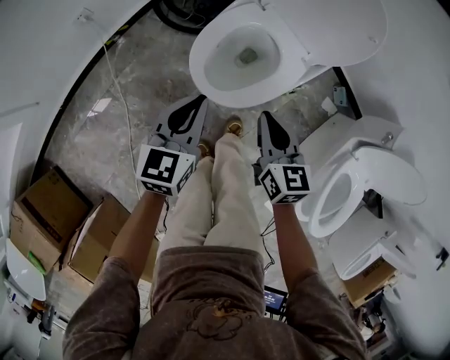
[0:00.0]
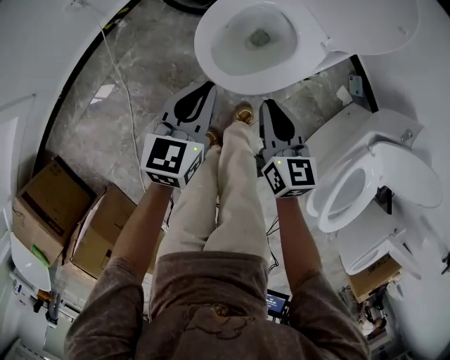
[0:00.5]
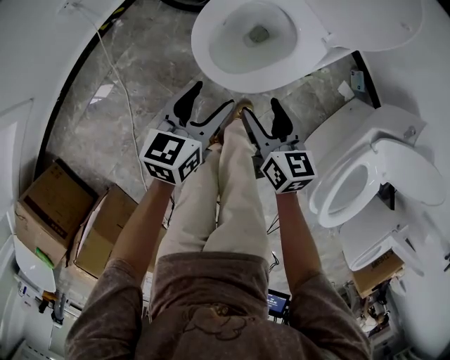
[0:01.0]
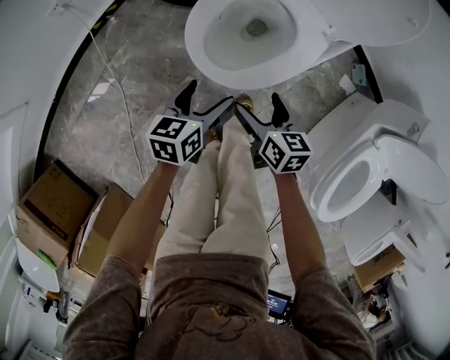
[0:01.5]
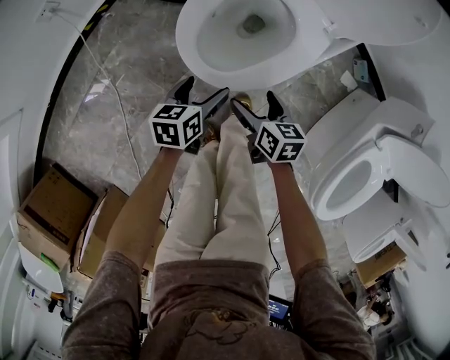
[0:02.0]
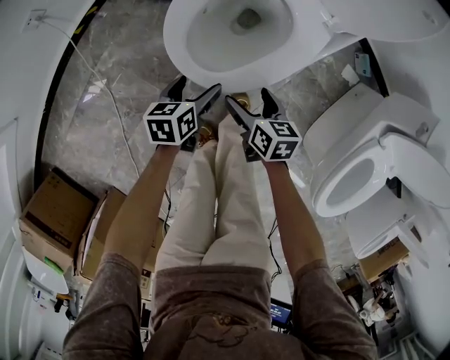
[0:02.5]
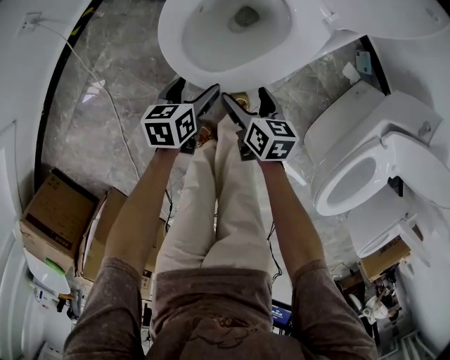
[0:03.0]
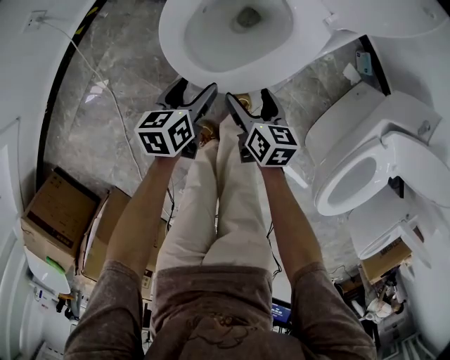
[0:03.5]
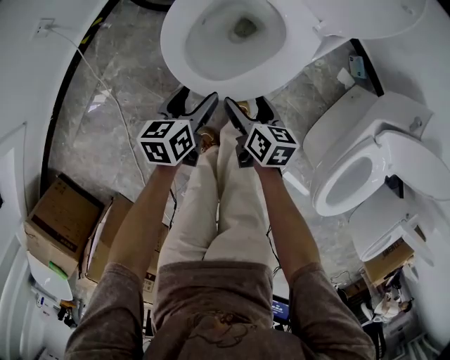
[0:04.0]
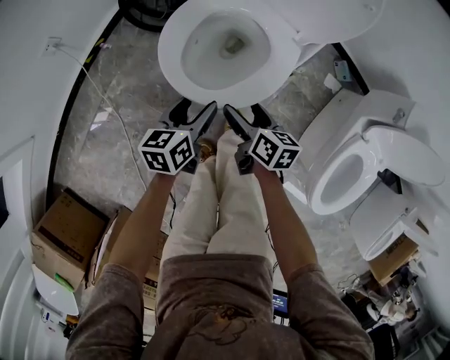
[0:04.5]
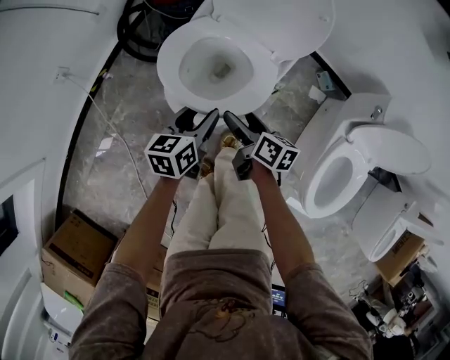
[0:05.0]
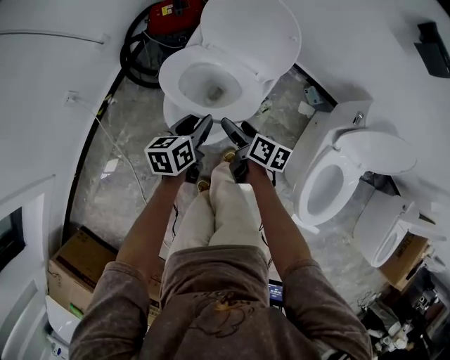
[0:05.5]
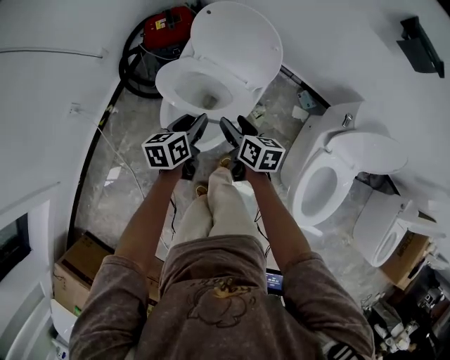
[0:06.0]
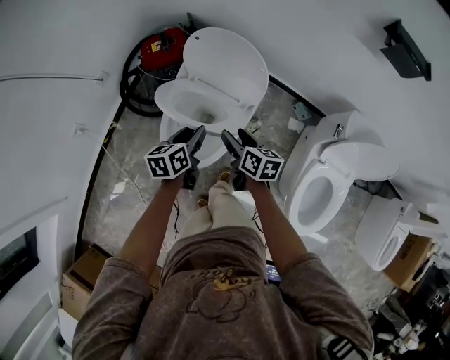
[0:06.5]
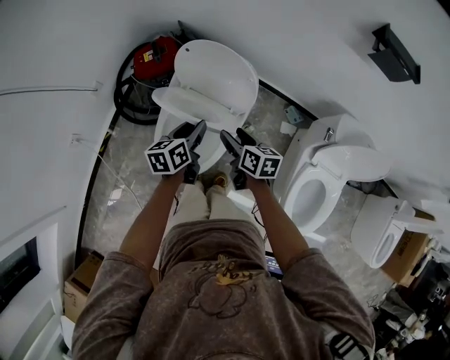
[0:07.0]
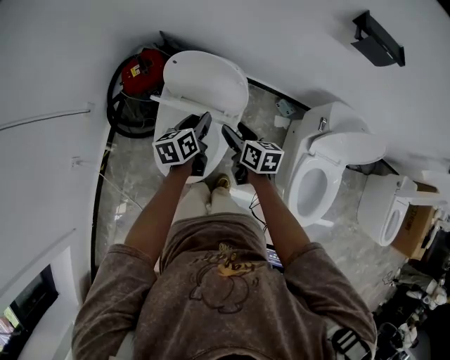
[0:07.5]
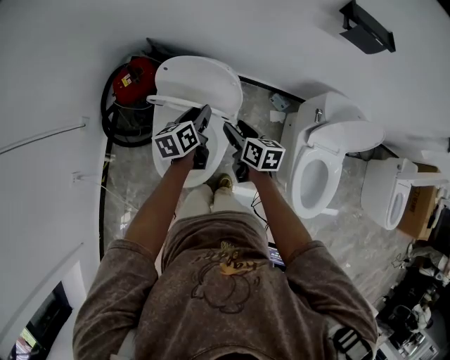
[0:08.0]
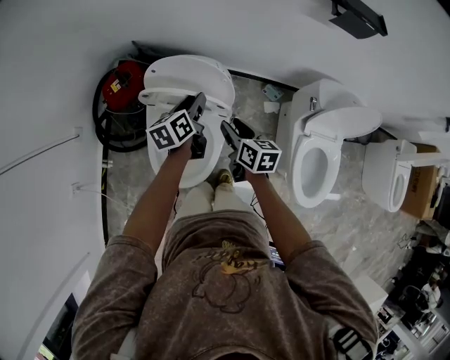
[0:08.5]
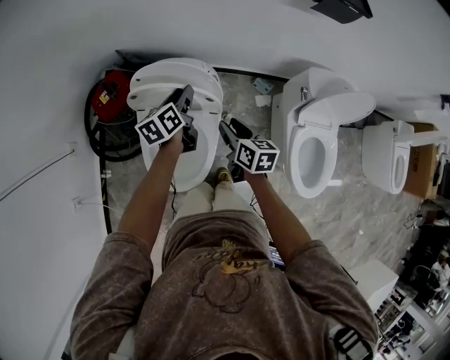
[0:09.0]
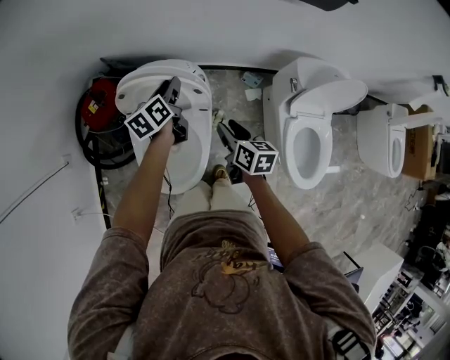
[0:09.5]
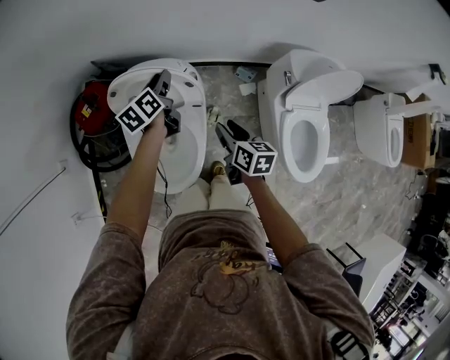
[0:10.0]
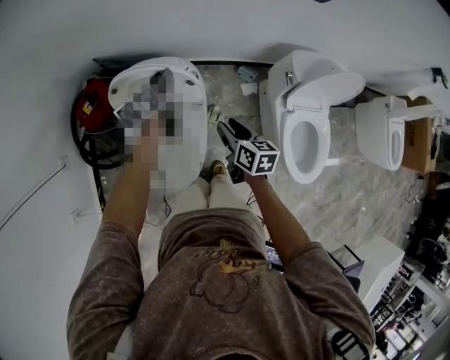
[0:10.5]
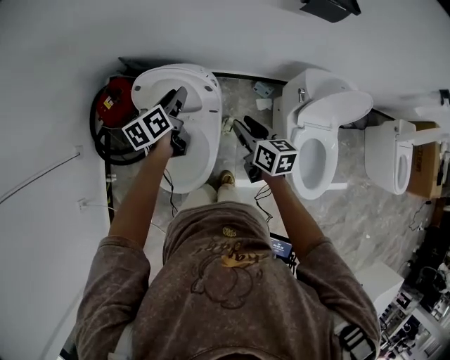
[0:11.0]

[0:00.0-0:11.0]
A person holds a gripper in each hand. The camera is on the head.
0:00.0 to 0:02.0: The two grippers go roughly 25 cm downward. The left gripper turns by roughly 30 degrees, and opens up, while the right gripper swivels some 30 degrees, and opens.
0:02.0 to 0:03.5: The grippers move only a little.
0:03.5 to 0:05.5: Both grippers move upward, approximately 20 cm. The left gripper closes its fingers. The right gripper rotates roughly 30 degrees.
0:05.5 to 0:07.5: The right gripper is displaced forward, upward and to the right by roughly 20 cm, while the left gripper heads forward, to the right and upward, covering roughly 20 cm.
0:07.5 to 0:09.0: The left gripper moves forward, roughly 10 cm.
0:09.0 to 0:11.0: The two grippers go roughly 5 cm upward.

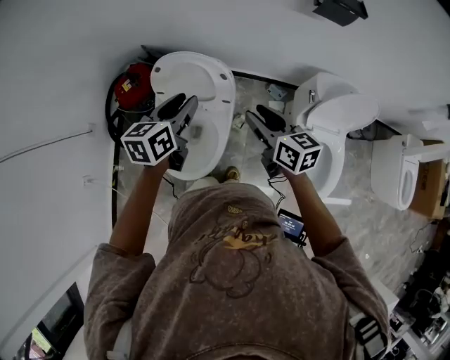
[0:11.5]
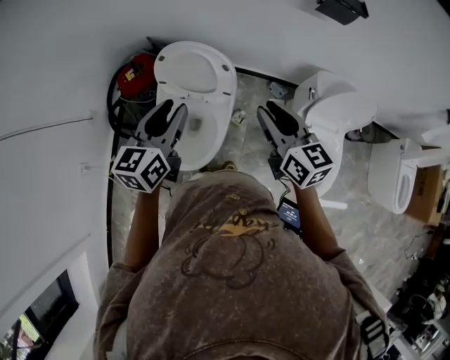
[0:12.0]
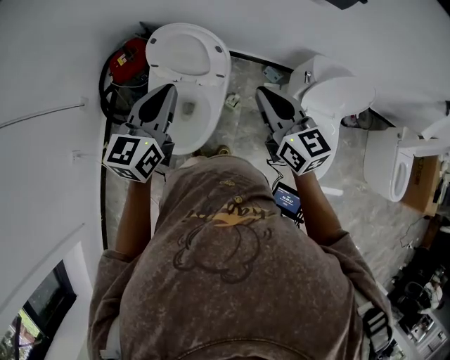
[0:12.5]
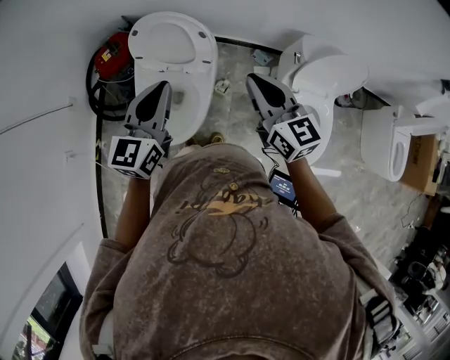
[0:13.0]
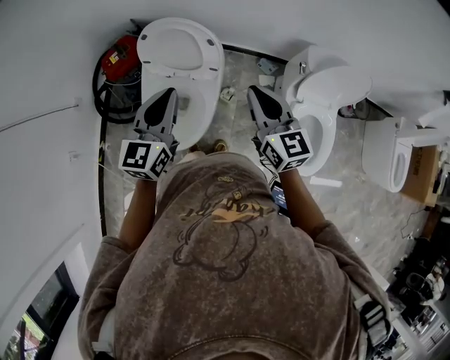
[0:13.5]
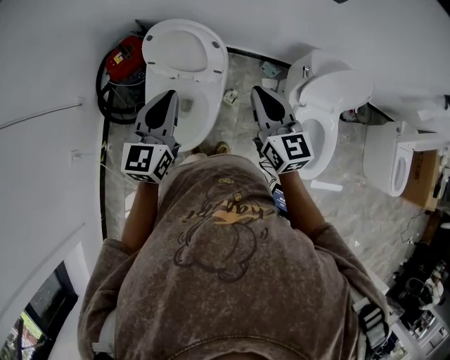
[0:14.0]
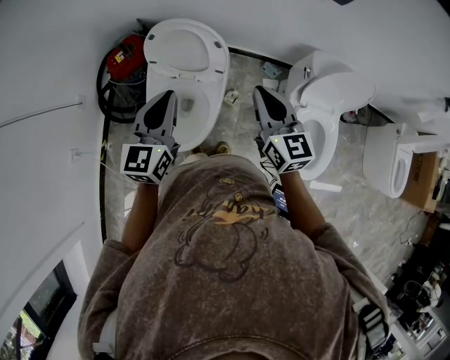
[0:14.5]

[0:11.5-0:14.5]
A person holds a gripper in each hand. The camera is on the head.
0:11.5 to 0:13.0: The left gripper travels backward and upward by roughly 10 cm, and rotates some 20 degrees; the right gripper is displaced upward and backward by roughly 10 cm, and rotates some 20 degrees.
0:13.0 to 0:14.5: There are only small adjustments of the grippers.

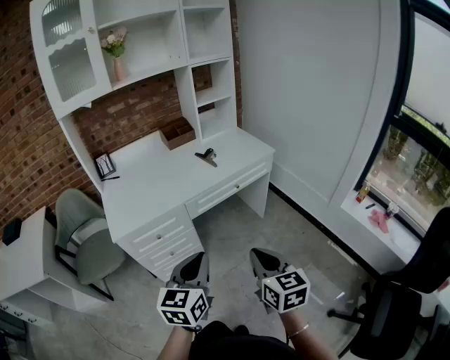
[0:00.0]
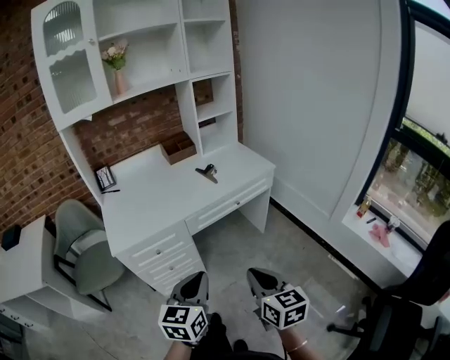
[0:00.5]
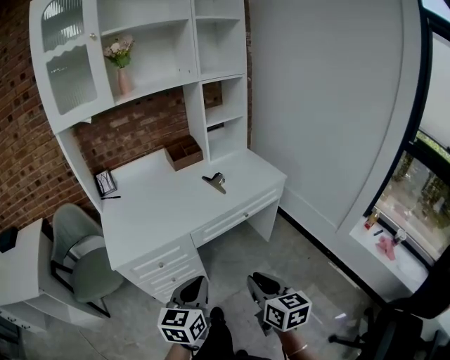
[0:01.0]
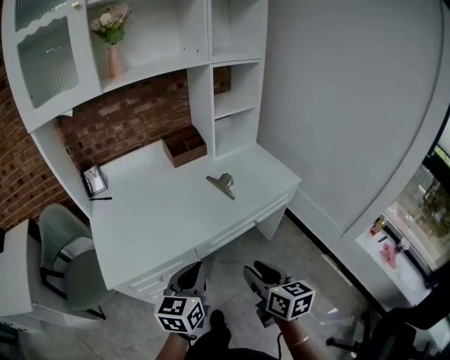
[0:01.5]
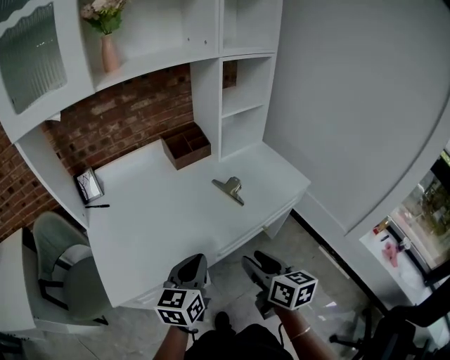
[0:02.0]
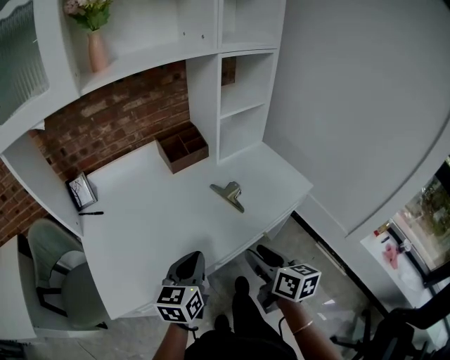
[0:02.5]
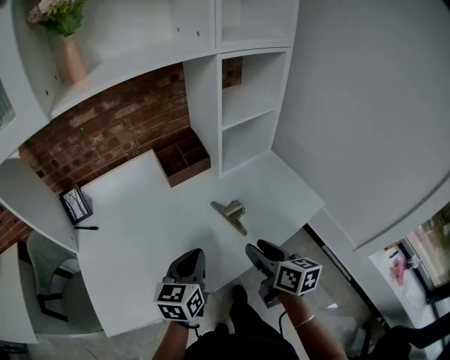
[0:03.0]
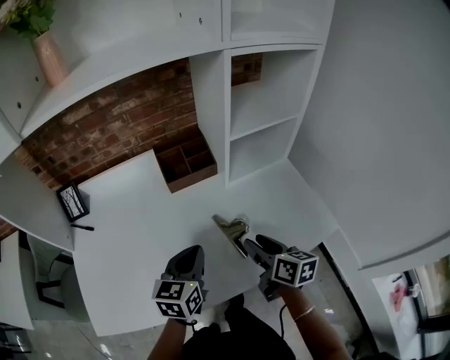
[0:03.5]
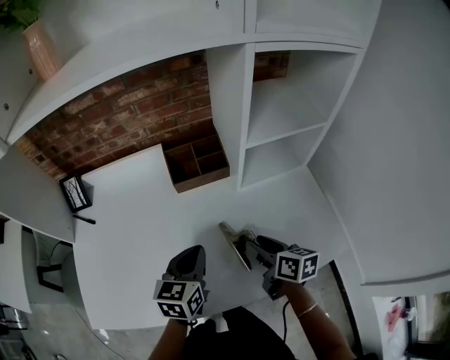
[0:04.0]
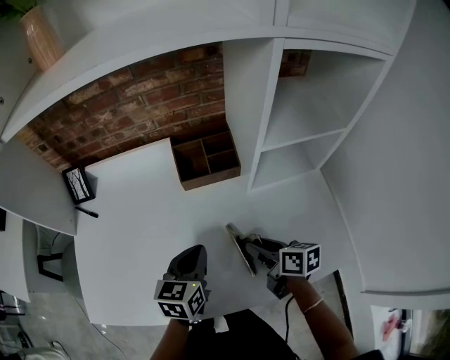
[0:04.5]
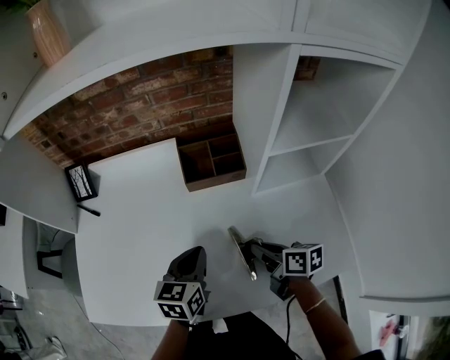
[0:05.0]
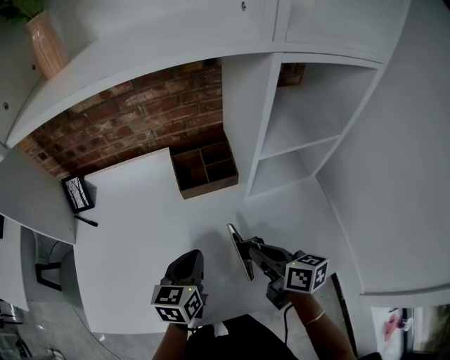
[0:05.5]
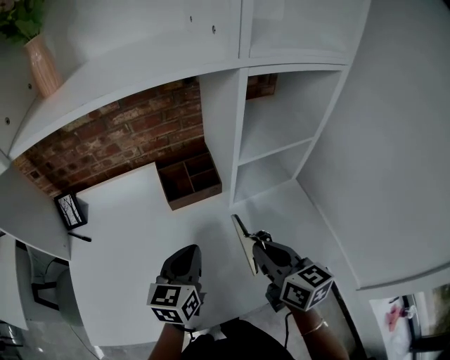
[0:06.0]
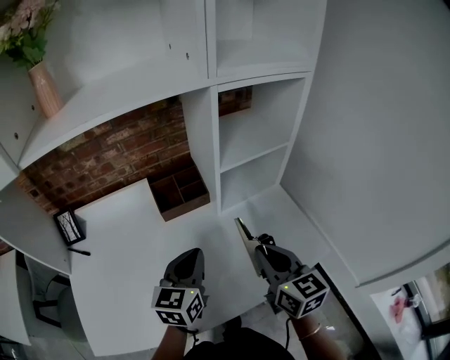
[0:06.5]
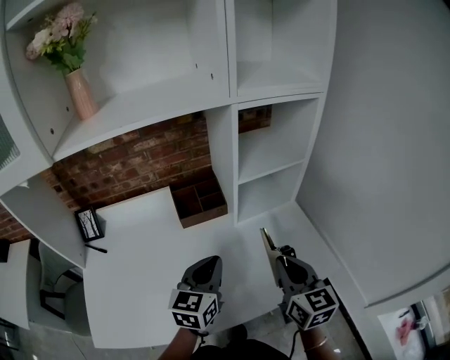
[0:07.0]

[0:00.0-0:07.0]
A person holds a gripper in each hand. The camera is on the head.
0:00.0 to 0:02.0: The two grippers go about 35 cm forward. The right gripper rotates approximately 20 degrees, and opens up.
0:02.0 to 0:03.5: The two grippers go approximately 25 cm forward.
0:03.5 to 0:05.0: The right gripper is displaced forward and downward by about 10 cm, swivels about 30 degrees, and closes. Meanwhile the left gripper heads forward, covering about 5 cm.
0:05.0 to 0:07.0: The right gripper is displaced upward by some 20 cm, and changes its angle by some 50 degrees, while the left gripper goes about 10 cm upward, and changes its angle by roughly 20 degrees.

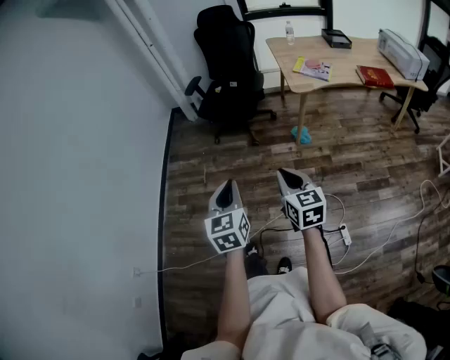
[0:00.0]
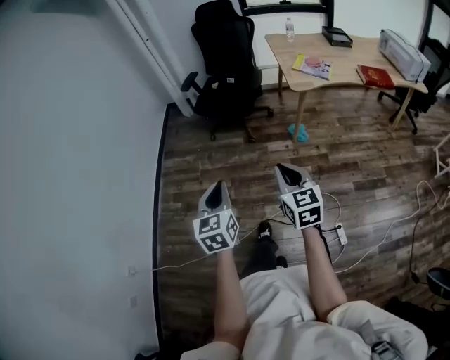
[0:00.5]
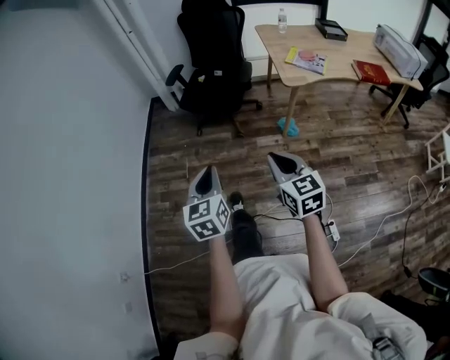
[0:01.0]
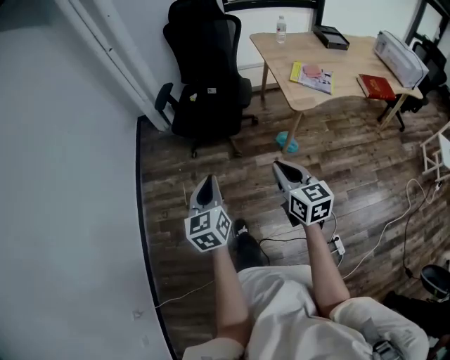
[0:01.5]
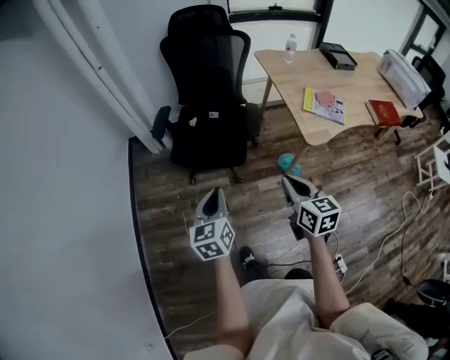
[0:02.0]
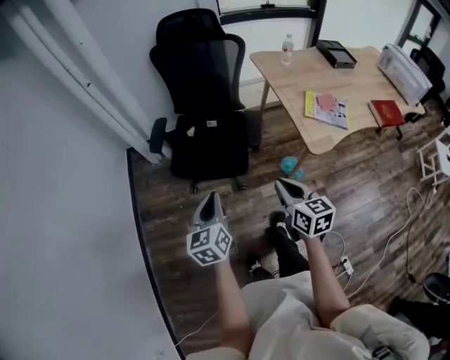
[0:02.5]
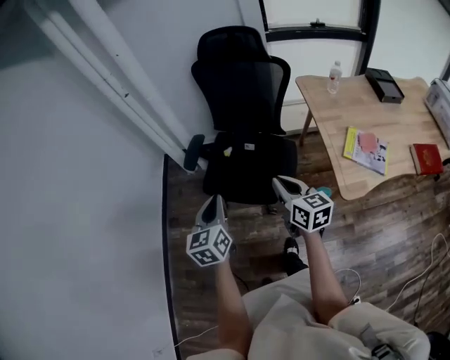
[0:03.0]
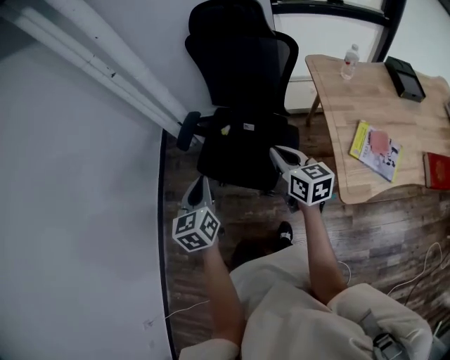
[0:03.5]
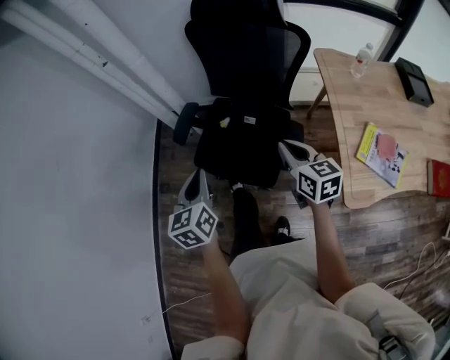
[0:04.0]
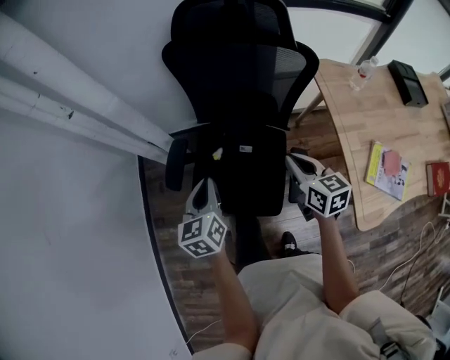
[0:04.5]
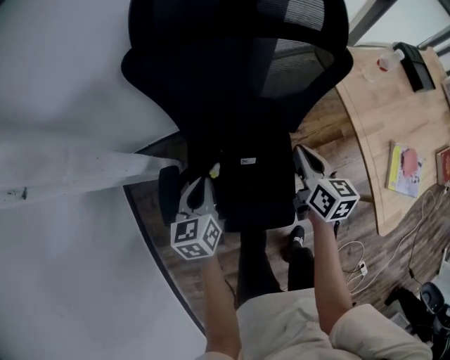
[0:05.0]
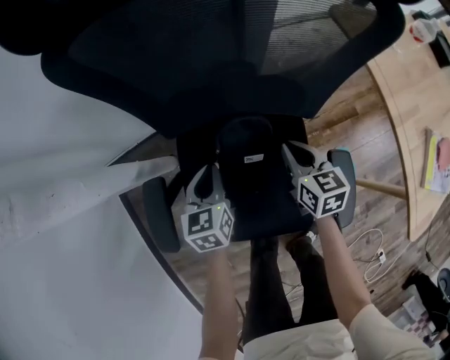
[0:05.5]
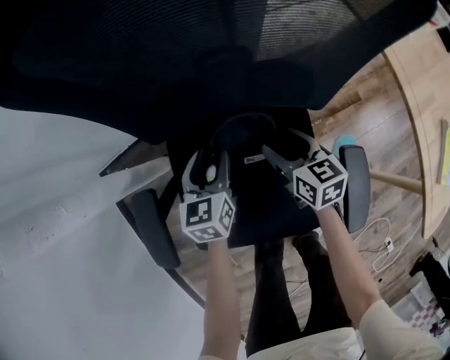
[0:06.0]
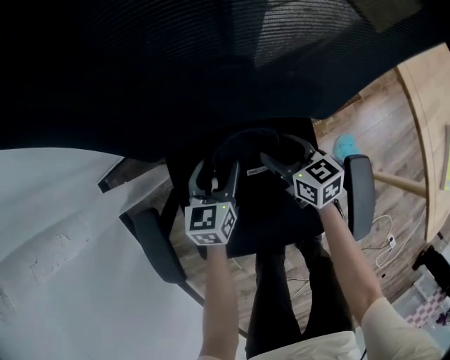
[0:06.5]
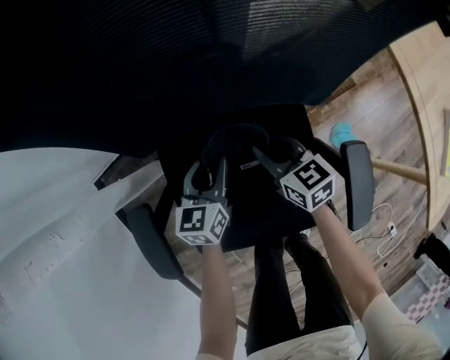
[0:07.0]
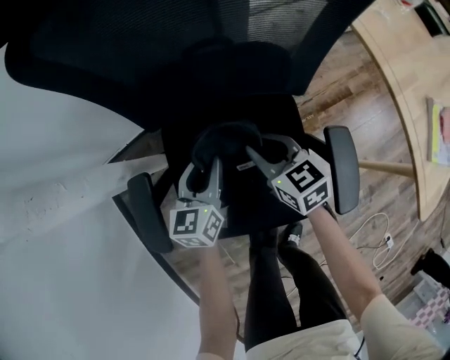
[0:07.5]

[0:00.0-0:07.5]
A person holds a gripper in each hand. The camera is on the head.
0:00.0 to 0:02.0: Both grippers are carried forward, about 50 cm.
0:02.0 to 0:04.0: The grippers both shift forward by about 35 cm. The right gripper rotates roughly 20 degrees.
0:04.0 to 0:05.5: The left gripper shifts by approximately 50 cm, and rotates approximately 30 degrees, while the right gripper travels downward by some 35 cm, and changes its angle by approximately 30 degrees.
0:05.5 to 0:07.5: The right gripper goes some 5 cm to the left, moves approximately 10 cm downward and comes back, and opens, then closes once more, while the left gripper moves approximately 10 cm downward and comes back, and opens.
